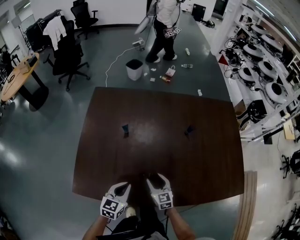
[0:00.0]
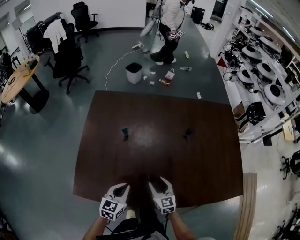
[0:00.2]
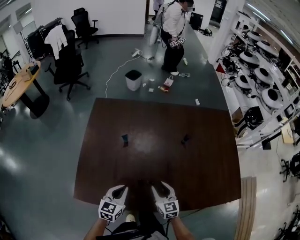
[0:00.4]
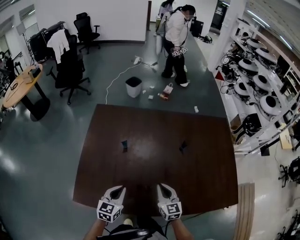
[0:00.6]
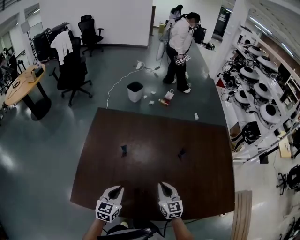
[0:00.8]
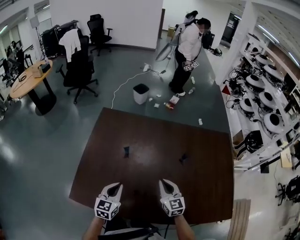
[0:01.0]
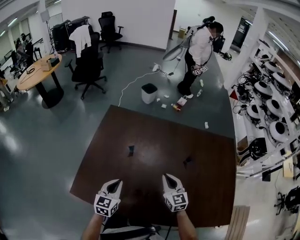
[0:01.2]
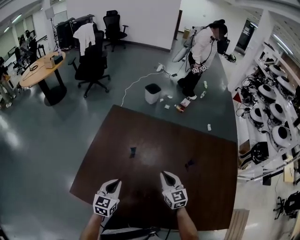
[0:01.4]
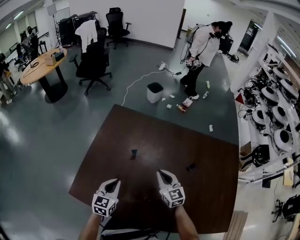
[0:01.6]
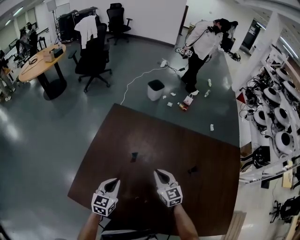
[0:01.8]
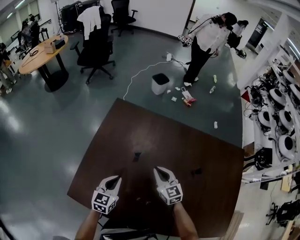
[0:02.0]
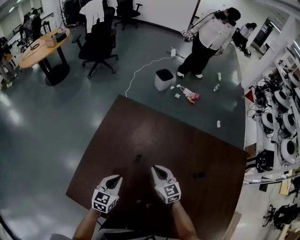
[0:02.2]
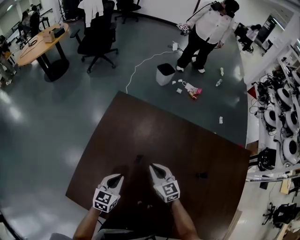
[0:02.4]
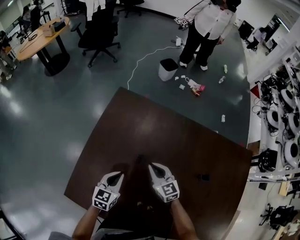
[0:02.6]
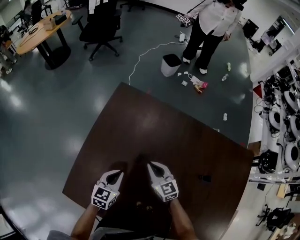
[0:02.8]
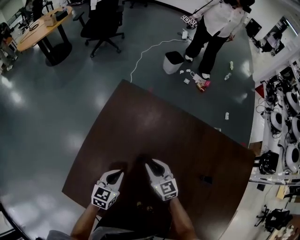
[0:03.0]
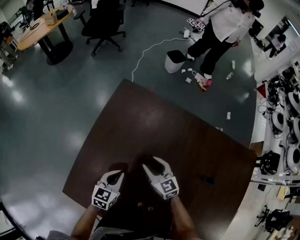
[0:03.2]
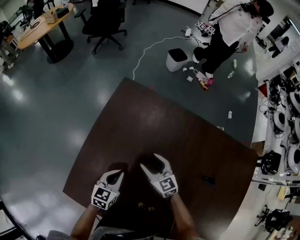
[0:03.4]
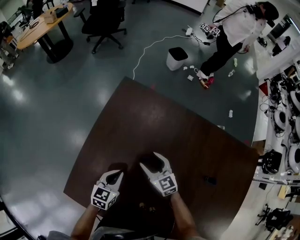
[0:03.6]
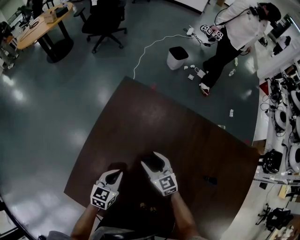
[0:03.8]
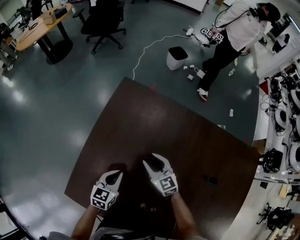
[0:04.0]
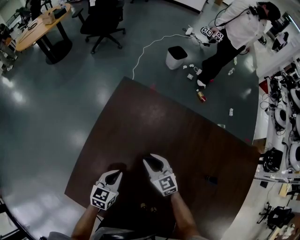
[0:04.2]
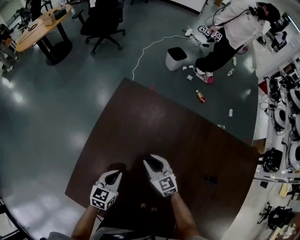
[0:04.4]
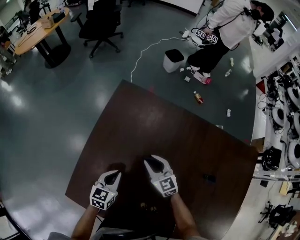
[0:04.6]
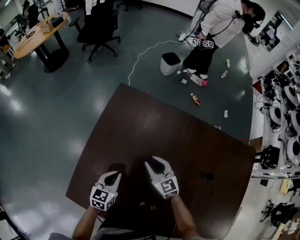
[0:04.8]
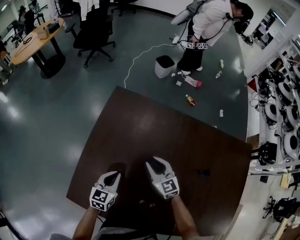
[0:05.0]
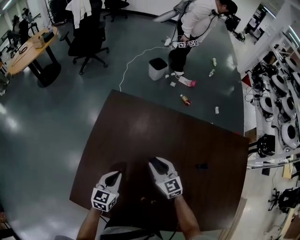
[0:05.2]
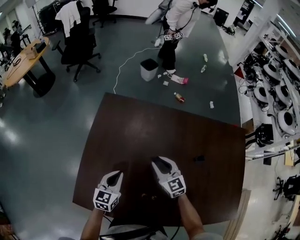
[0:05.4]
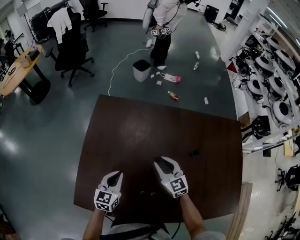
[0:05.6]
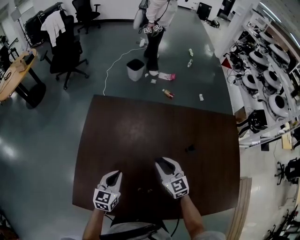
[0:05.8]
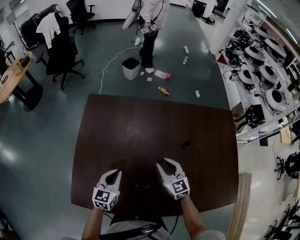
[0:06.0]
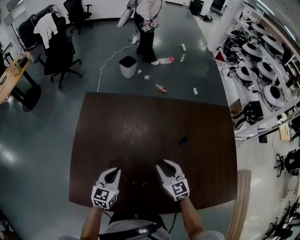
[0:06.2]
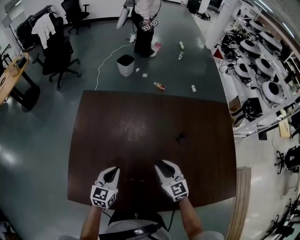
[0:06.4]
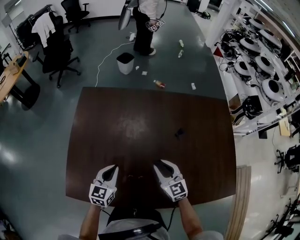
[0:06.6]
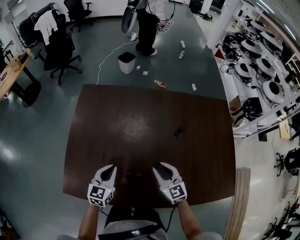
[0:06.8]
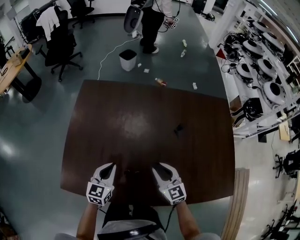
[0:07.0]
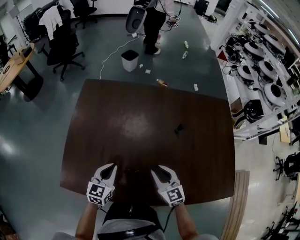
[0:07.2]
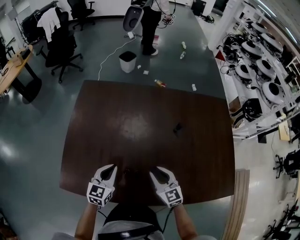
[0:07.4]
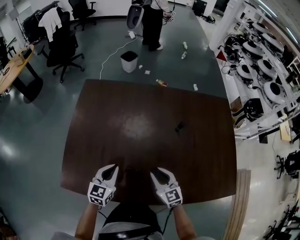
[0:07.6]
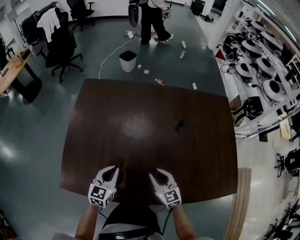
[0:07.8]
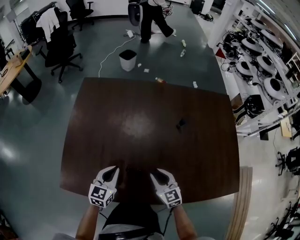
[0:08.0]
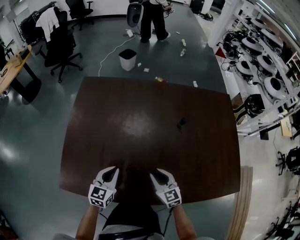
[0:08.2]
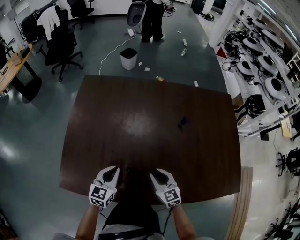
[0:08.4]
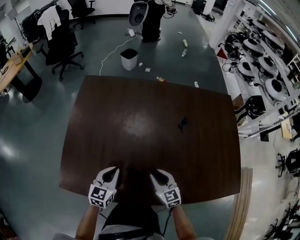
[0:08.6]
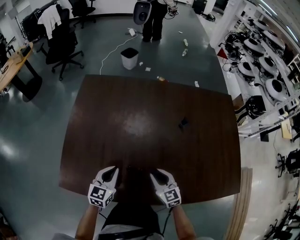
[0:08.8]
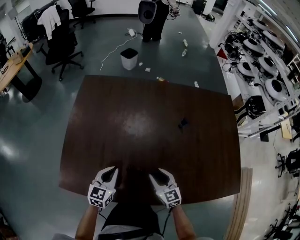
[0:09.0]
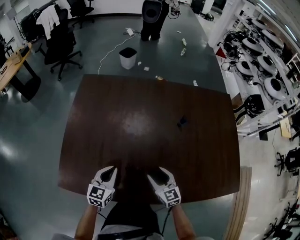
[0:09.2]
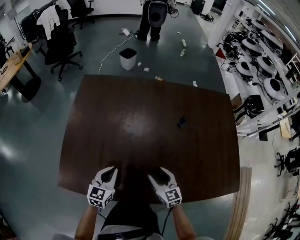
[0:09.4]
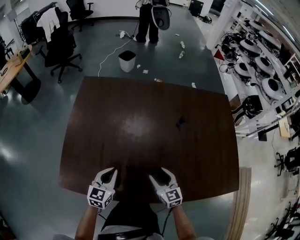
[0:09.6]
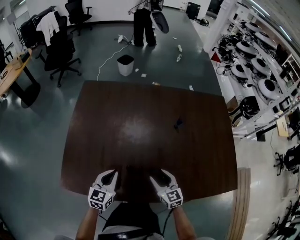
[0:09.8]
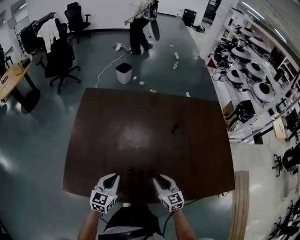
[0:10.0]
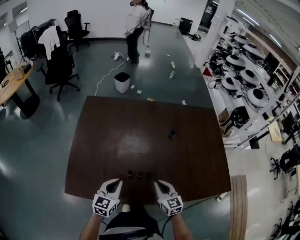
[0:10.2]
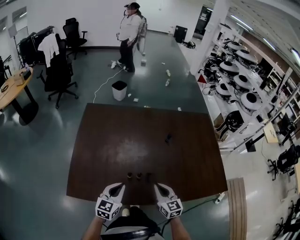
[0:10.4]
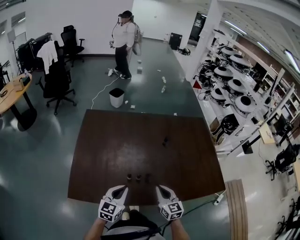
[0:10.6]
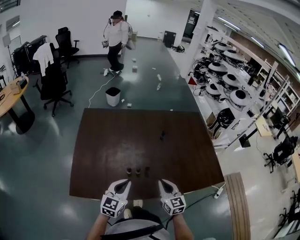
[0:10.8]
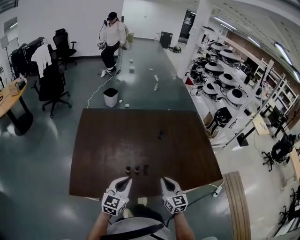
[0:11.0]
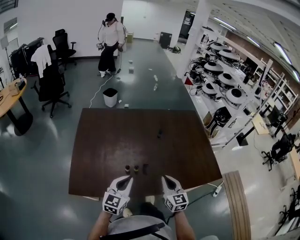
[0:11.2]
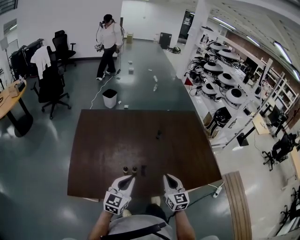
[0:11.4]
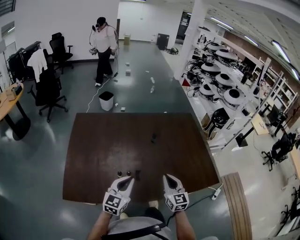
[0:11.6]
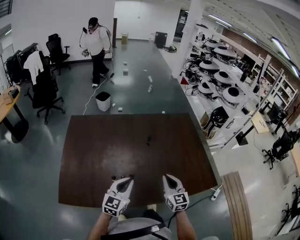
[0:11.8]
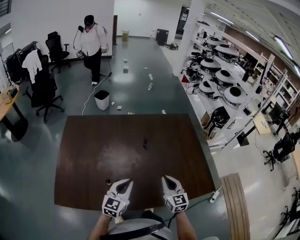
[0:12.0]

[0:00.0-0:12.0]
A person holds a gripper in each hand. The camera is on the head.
0:00.0 to 0:01.6: The left gripper goes some 15 cm forward, upward and to the left, and changes its angle by about 20 degrees, while the right gripper is displaced forward and upward by some 20 cm, and closes.
0:01.6 to 0:03.0: The left gripper heads downward and forward, covering some 15 cm. The right gripper goes some 20 cm downward, forward and to the left.
0:03.0 to 0:04.4: The right gripper opens, then closes once more.
0:04.4 to 0:06.0: The right gripper moves to the right, backward and upward, some 20 cm, and turns by approximately 30 degrees. Meanwhile the left gripper shifts some 10 cm upward and to the right.
0:06.0 to 0:07.6: The left gripper shifts some 5 cm backward, while the right gripper is displaced backward by roughly 15 cm.
0:07.6 to 0:09.0: The right gripper goes about 5 cm downward.
0:09.0 to 0:10.4: The grippers both shift upward and backward by approximately 10 cm. The right gripper closes its fingers.
0:10.4 to 0:12.0: Both grippers travel together to the right and forward, some 15 cm.

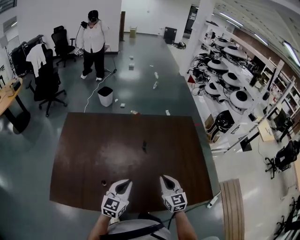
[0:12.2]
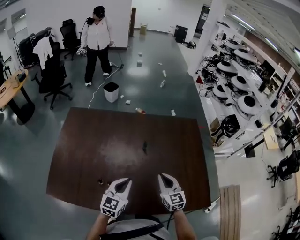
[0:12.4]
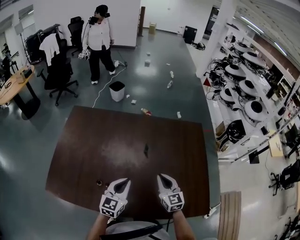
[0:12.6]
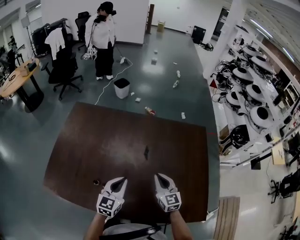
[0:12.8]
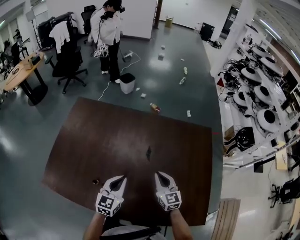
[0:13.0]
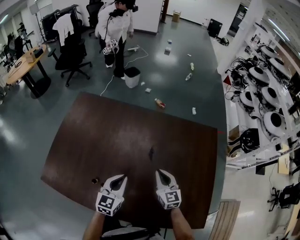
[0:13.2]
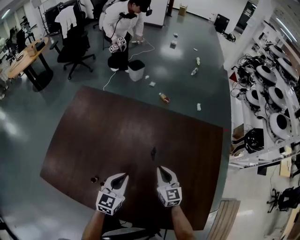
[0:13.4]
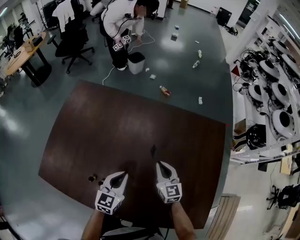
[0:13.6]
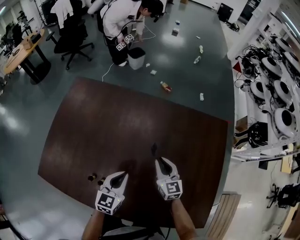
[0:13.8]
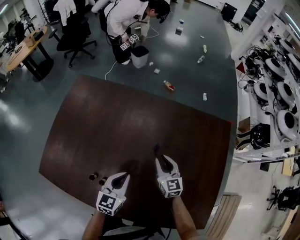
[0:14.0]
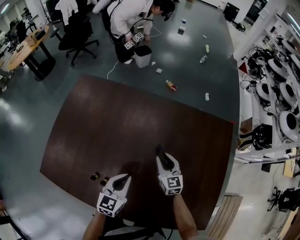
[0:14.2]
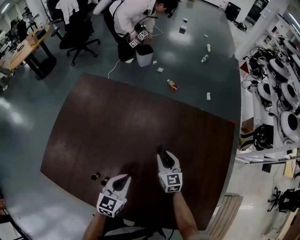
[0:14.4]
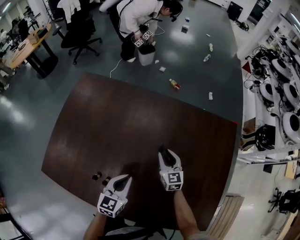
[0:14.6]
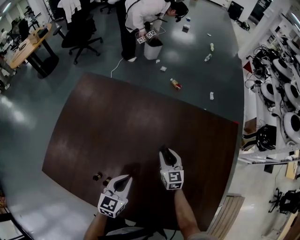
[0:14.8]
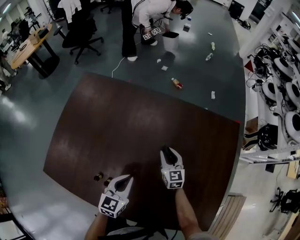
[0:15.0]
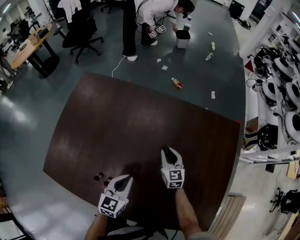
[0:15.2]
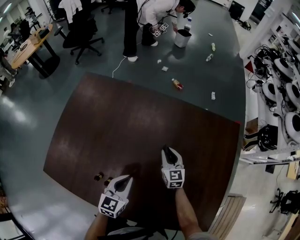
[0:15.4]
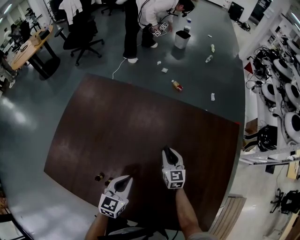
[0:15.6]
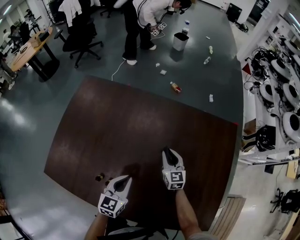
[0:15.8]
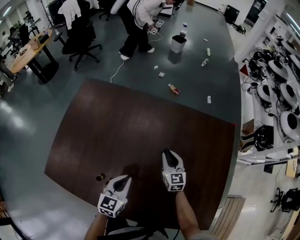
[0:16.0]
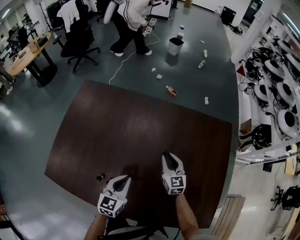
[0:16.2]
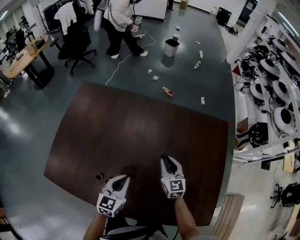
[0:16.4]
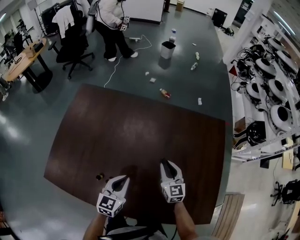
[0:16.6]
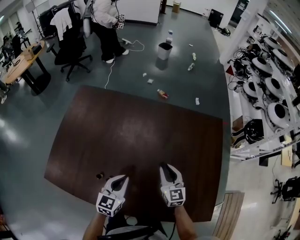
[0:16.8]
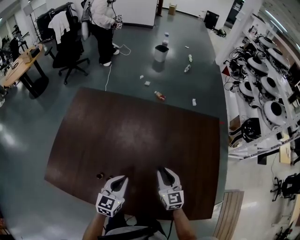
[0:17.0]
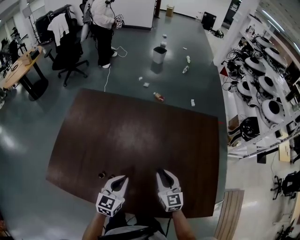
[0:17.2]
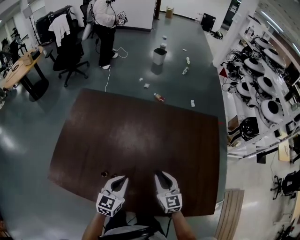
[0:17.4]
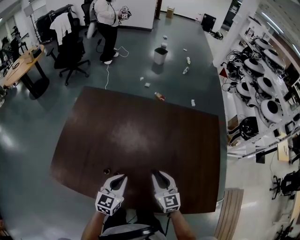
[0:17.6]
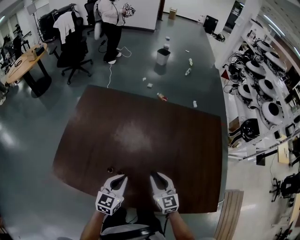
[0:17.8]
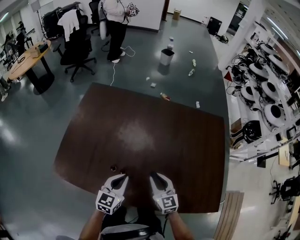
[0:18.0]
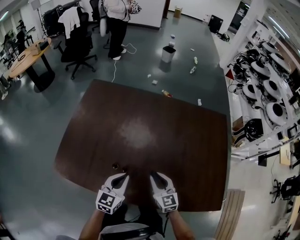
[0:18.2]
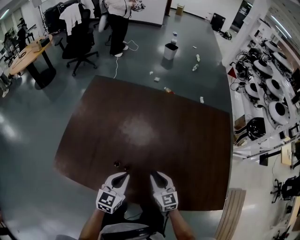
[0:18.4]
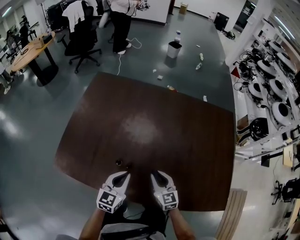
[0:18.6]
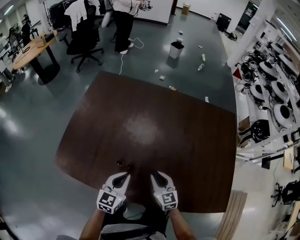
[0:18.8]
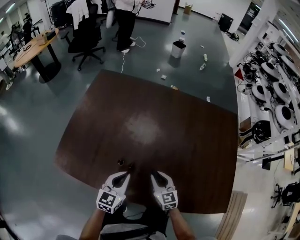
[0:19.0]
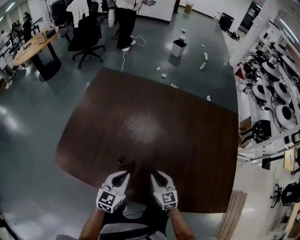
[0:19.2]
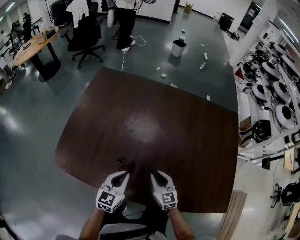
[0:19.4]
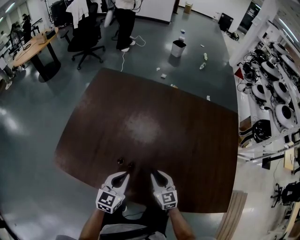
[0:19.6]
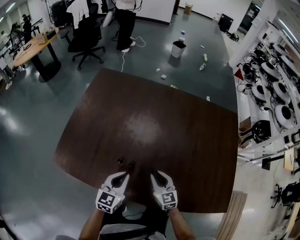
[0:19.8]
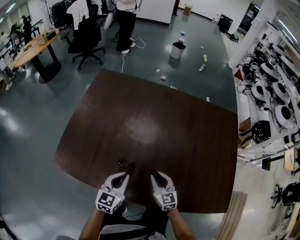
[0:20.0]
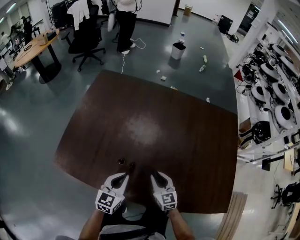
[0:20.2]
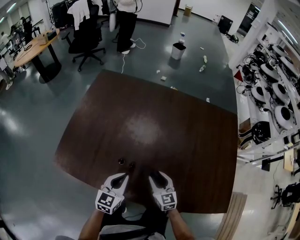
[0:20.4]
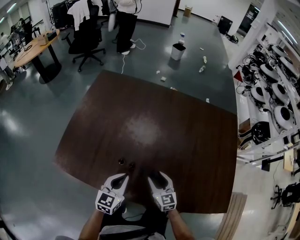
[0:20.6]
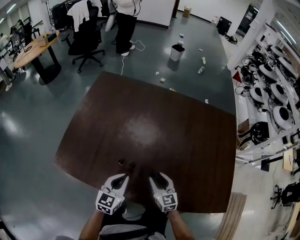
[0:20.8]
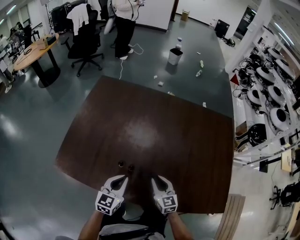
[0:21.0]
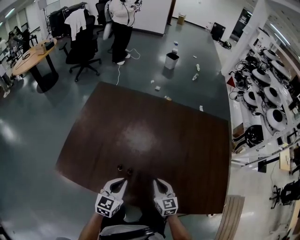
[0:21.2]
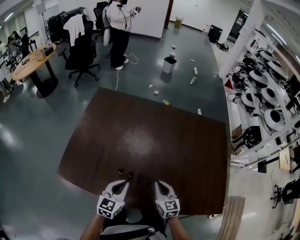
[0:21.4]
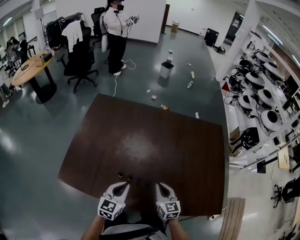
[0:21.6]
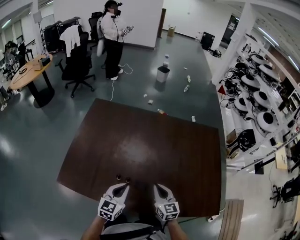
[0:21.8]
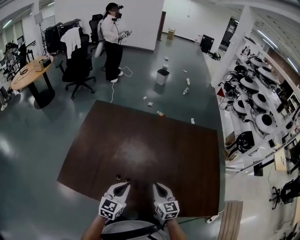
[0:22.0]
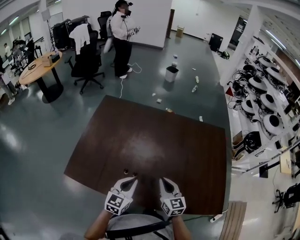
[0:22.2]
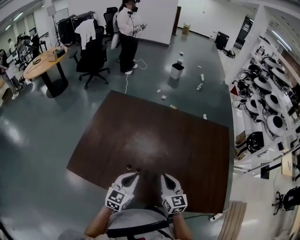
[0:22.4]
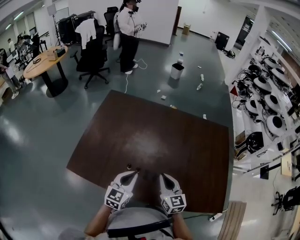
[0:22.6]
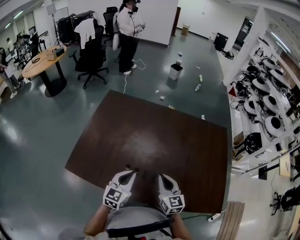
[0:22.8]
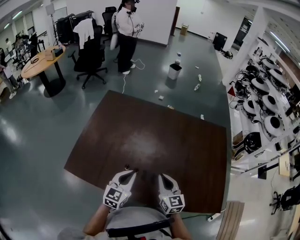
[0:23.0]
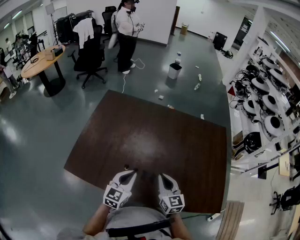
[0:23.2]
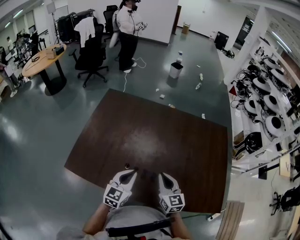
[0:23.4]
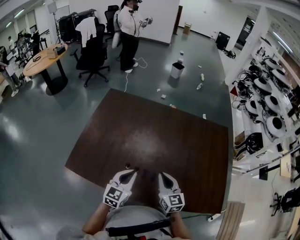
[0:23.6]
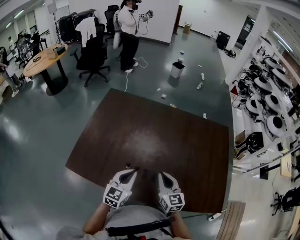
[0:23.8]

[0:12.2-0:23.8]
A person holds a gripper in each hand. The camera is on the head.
0:12.2 to 0:13.6: The right gripper heads forward and downward, covering approximately 20 cm; the left gripper is displaced forward and downward by some 15 cm, and rotates roughly 20 degrees.
0:13.6 to 0:15.0: The right gripper goes approximately 10 cm downward and forward, and opens up.
0:15.0 to 0:16.6: The right gripper moves backward and upward, some 10 cm.
0:16.6 to 0:18.0: The left gripper shifts approximately 10 cm to the left and backward. The right gripper is displaced backward and to the left by about 20 cm.
0:18.0 to 0:19.4: The left gripper moves downward, some 5 cm. The right gripper goes roughly 10 cm downward.
0:19.4 to 0:21.0: The right gripper opens and closes again.
0:21.0 to 0:22.4: The right gripper travels upward by roughly 15 cm, while the left gripper moves upward, roughly 10 cm.
0:22.4 to 0:23.8: The grippers stay close to where they were, moving slightly.
